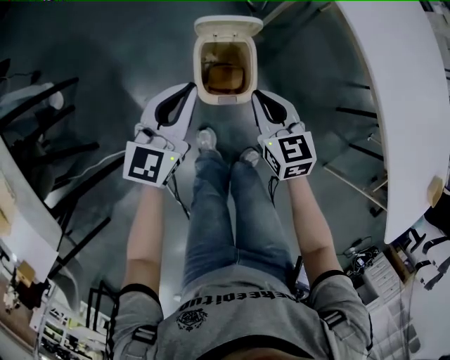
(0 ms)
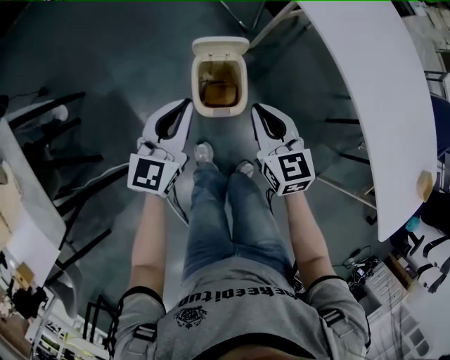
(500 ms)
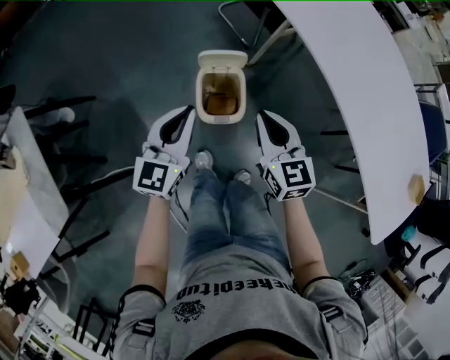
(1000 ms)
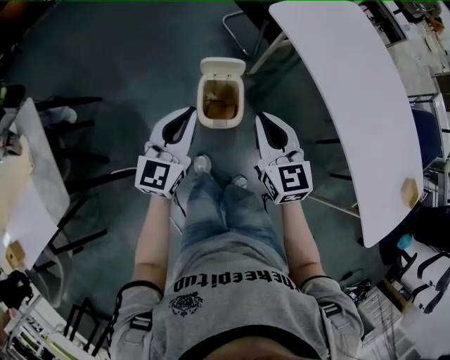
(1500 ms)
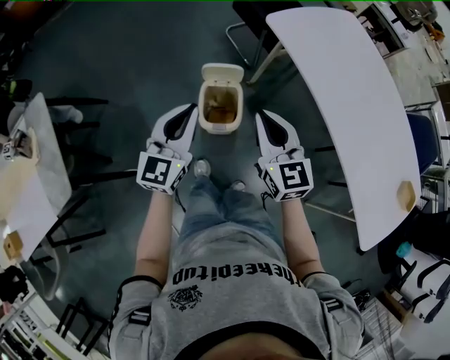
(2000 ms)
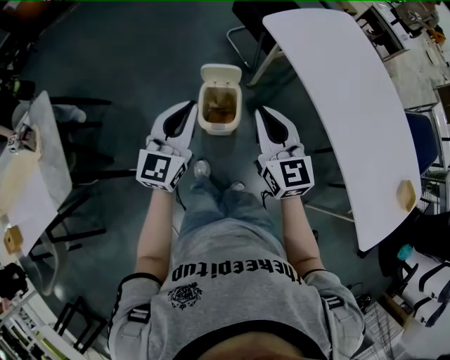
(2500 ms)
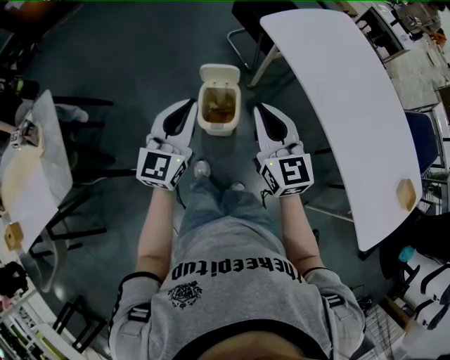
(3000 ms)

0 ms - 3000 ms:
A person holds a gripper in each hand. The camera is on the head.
0 ms - 1500 ms: The left gripper moves upward and backward, some 15 cm; the right gripper goes about 20 cm upward.
1500 ms - 3000 ms: The two grippers go approximately 5 cm upward.

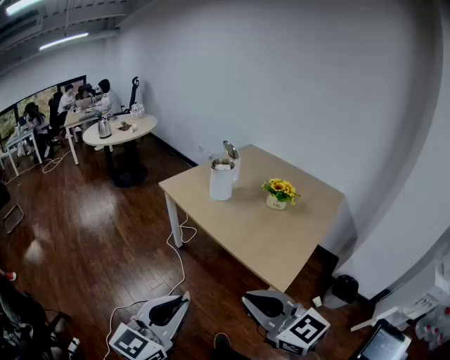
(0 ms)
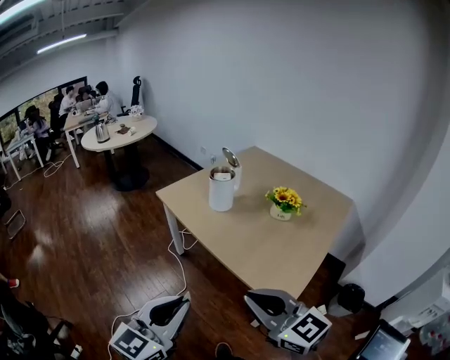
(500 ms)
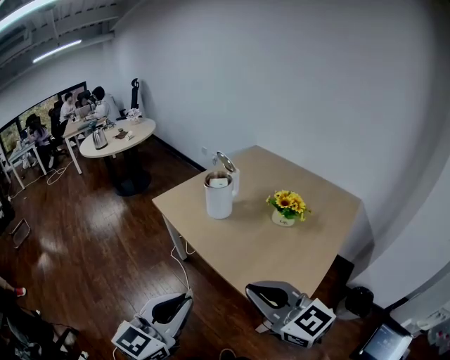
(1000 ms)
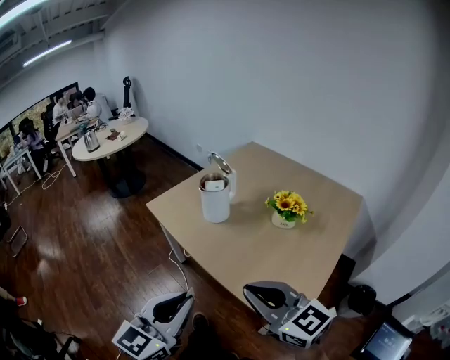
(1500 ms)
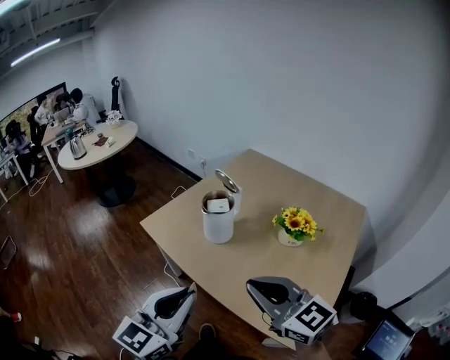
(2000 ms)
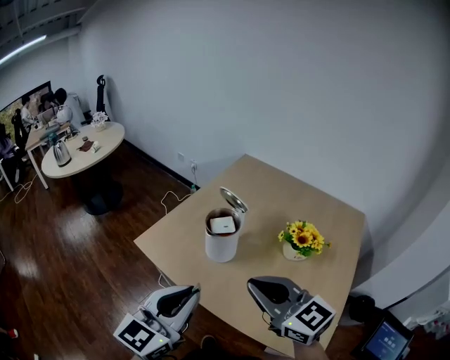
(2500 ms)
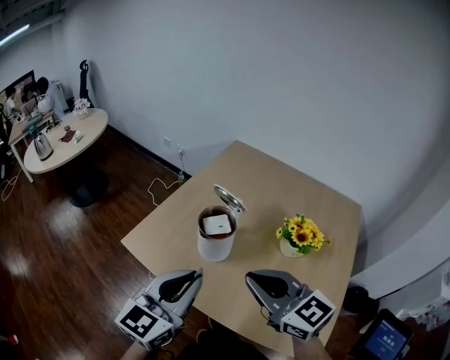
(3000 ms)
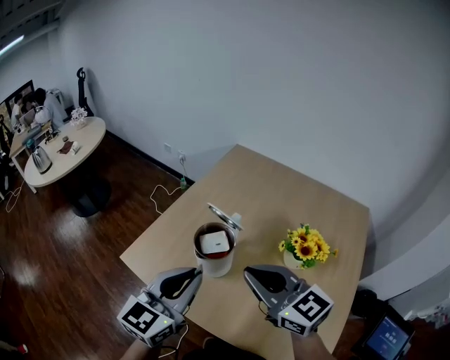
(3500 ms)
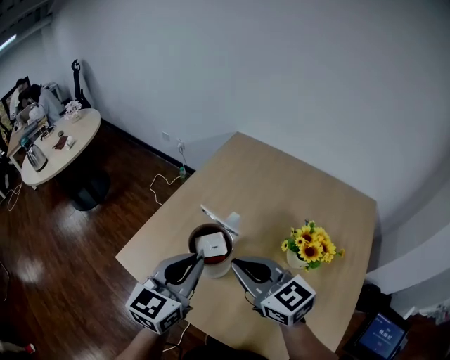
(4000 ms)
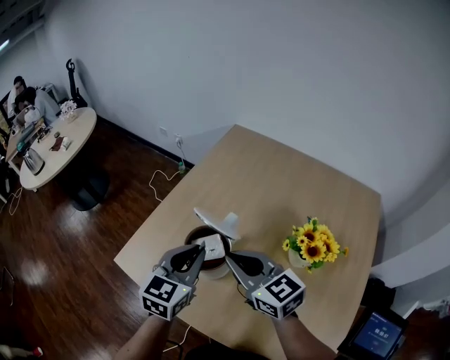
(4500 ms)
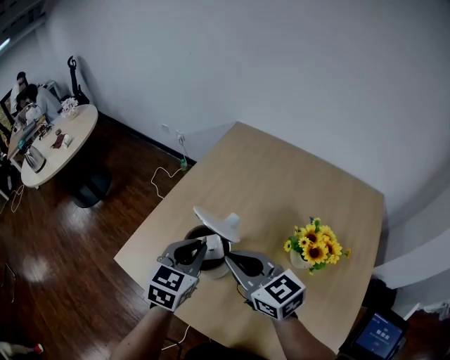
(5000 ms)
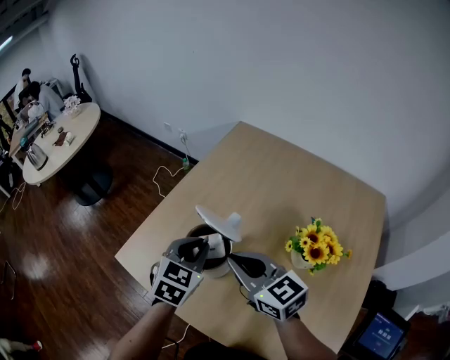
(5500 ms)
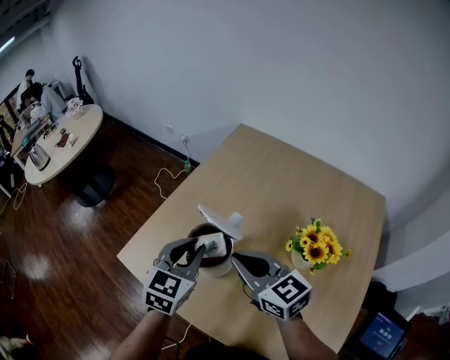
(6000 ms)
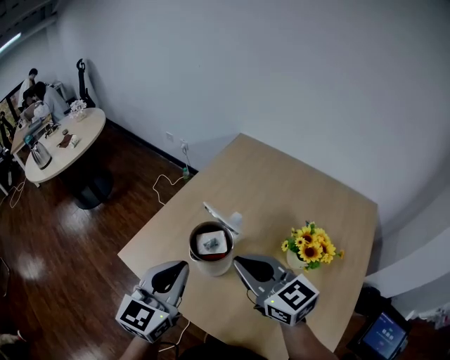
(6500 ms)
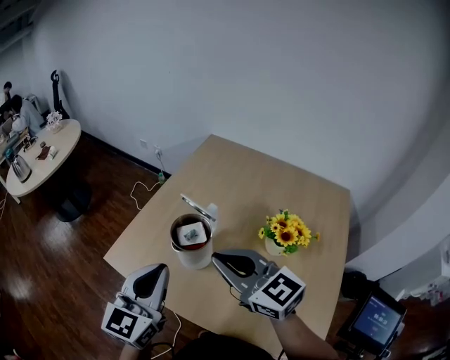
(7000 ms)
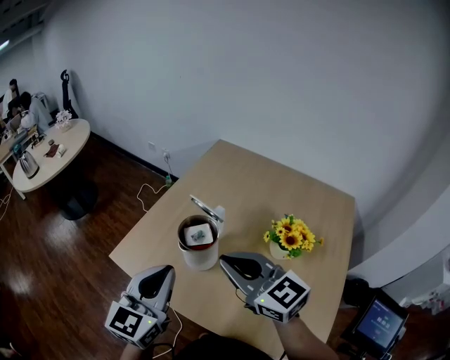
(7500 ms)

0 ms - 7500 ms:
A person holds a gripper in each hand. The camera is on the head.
0 ms - 2000 ms: Both grippers move forward, approximately 35 cm.
2000 ms - 4000 ms: The two grippers go approximately 35 cm forward.
4000 ms - 5500 ms: The left gripper is displaced downward and forward by some 10 cm, and turns by approximately 30 degrees.
5500 ms - 7500 ms: The right gripper moves upward and backward, some 10 cm; the left gripper is displaced backward, upward and to the left by about 20 cm, and changes its angle by roughly 30 degrees.

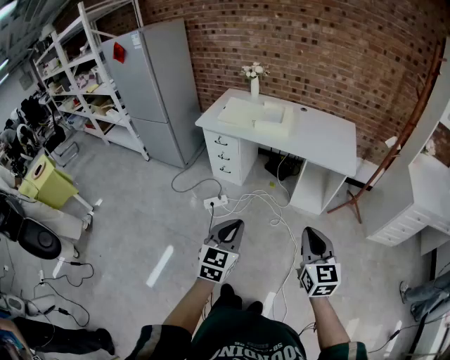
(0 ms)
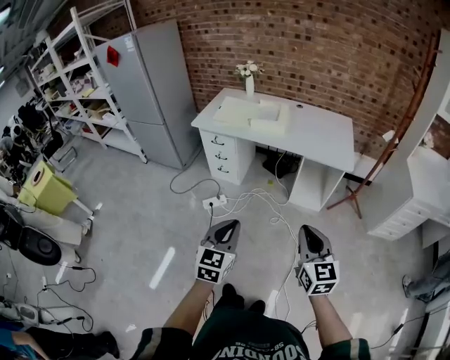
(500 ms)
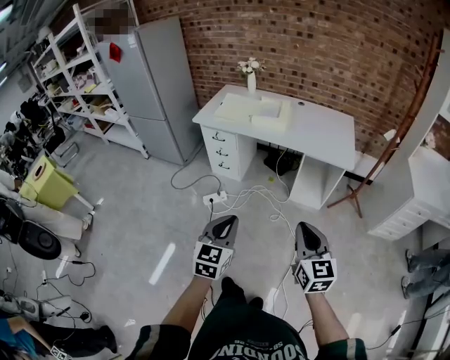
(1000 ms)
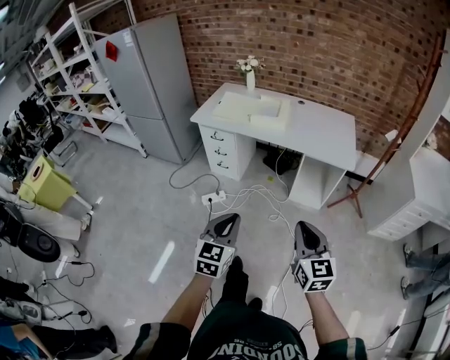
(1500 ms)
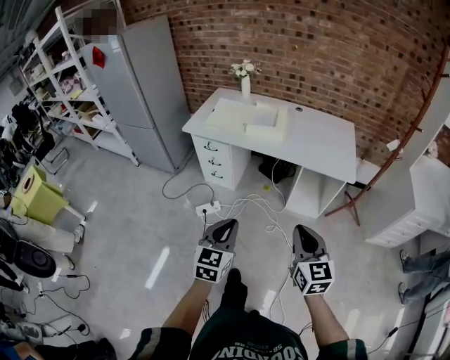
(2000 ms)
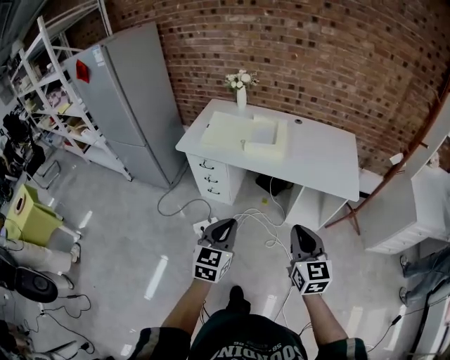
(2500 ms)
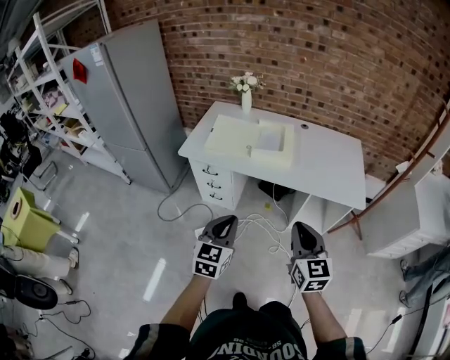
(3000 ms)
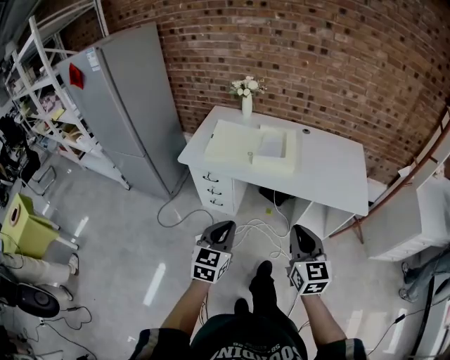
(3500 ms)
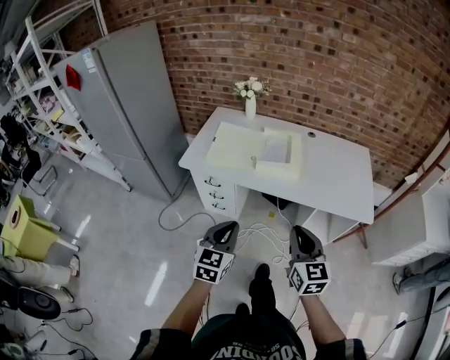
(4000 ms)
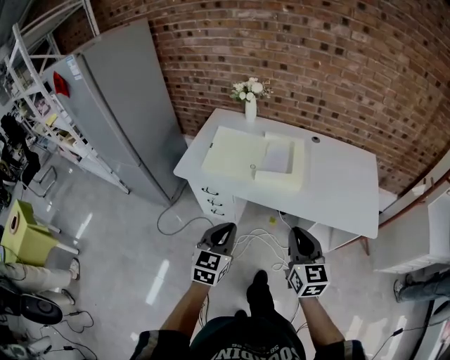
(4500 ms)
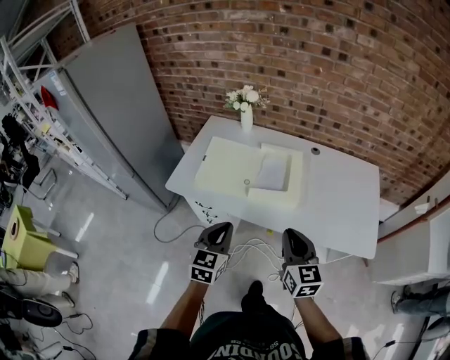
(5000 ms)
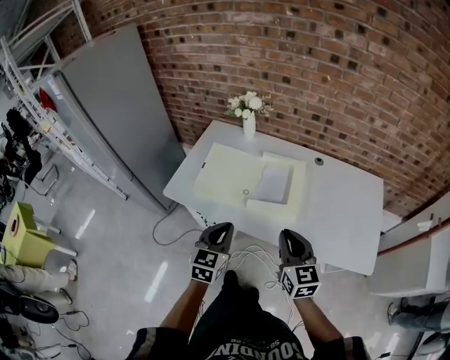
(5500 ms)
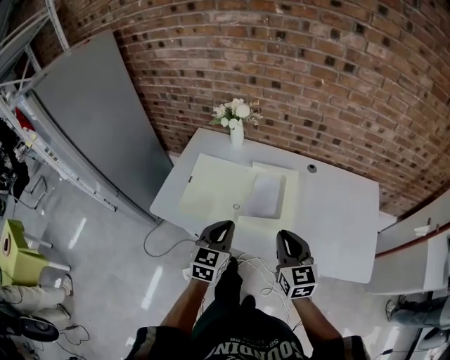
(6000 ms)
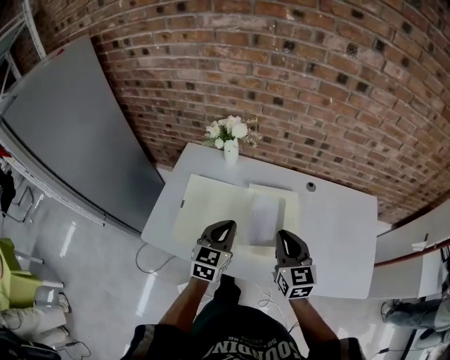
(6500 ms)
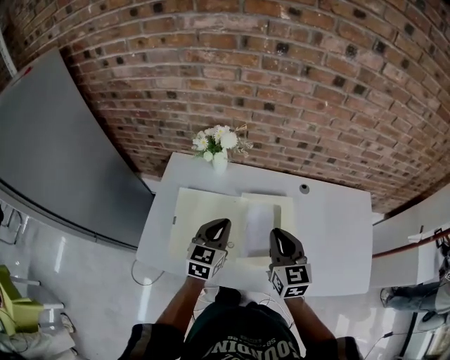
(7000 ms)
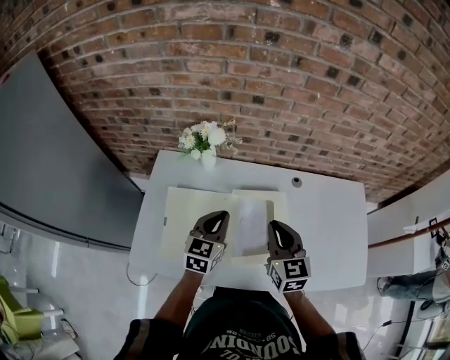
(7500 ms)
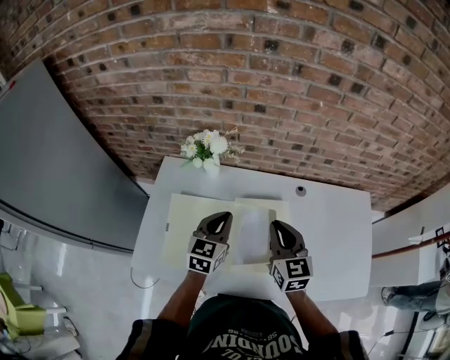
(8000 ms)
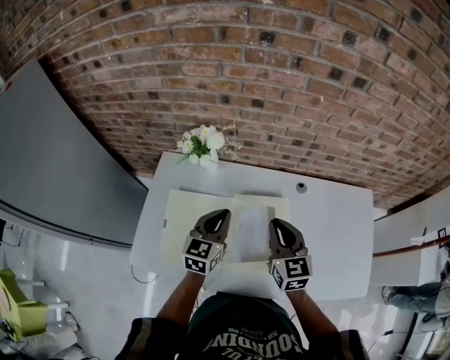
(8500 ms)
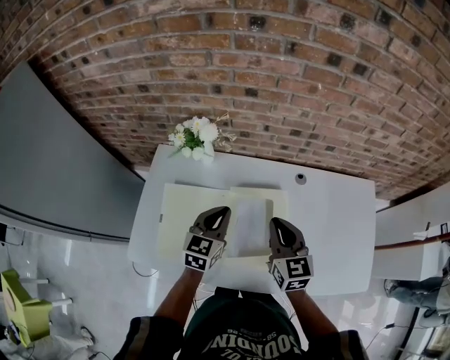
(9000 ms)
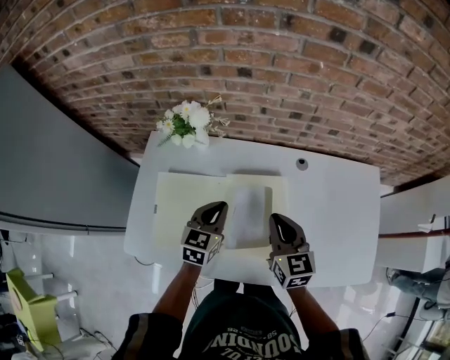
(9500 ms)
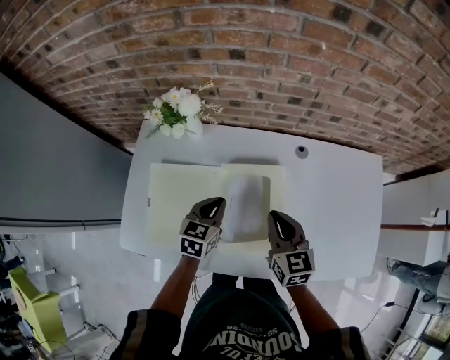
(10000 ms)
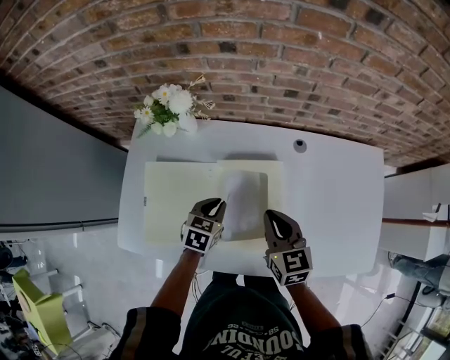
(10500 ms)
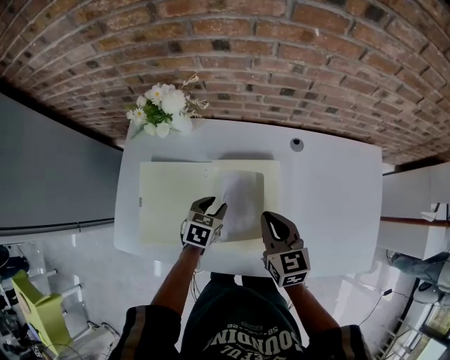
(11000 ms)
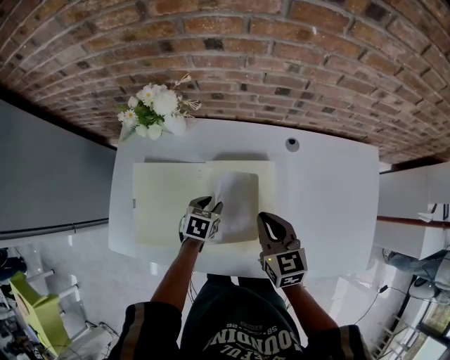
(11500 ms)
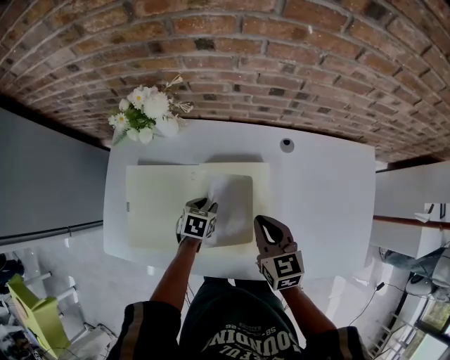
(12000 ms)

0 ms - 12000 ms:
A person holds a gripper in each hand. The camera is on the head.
0 ms - 2000 ms: The two grippers go about 10 cm forward.
2000 ms - 4000 ms: The two grippers go some 30 cm forward and to the left.
4000 ms - 6000 ms: Both grippers travel together forward, roughly 35 cm.
6000 ms - 8000 ms: Both grippers travel together forward, about 25 cm.
8000 ms - 10000 ms: The right gripper shifts about 10 cm downward and to the right. The left gripper is displaced downward by some 10 cm.
10000 ms - 12000 ms: The left gripper moves downward, about 15 cm, turns by some 30 degrees, and opens its fingers.

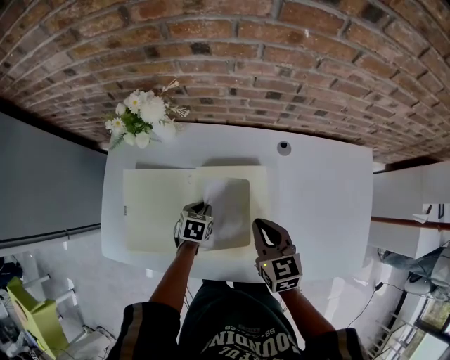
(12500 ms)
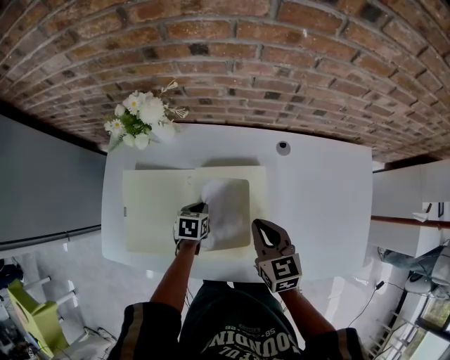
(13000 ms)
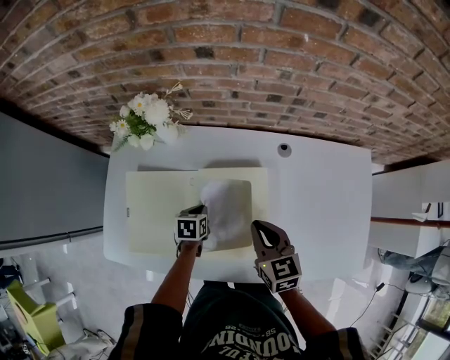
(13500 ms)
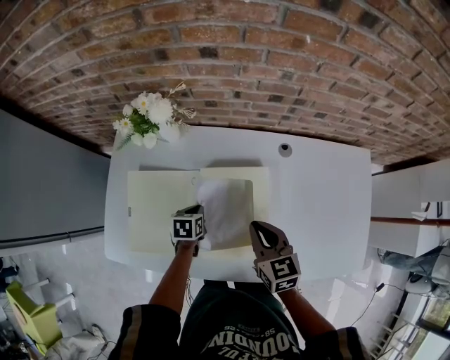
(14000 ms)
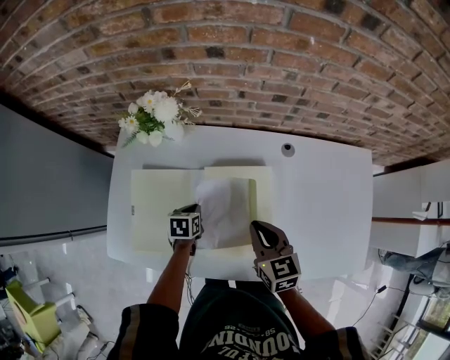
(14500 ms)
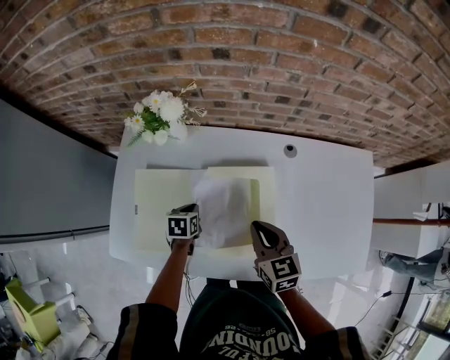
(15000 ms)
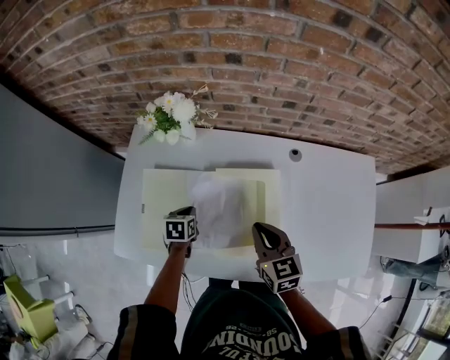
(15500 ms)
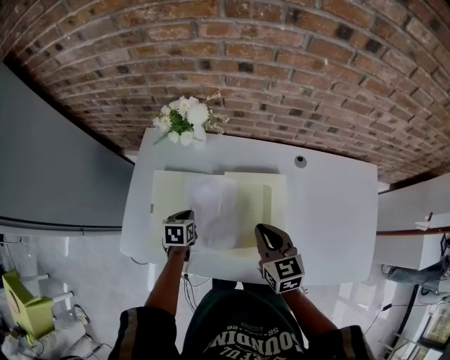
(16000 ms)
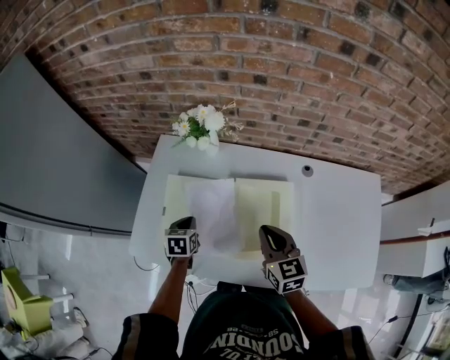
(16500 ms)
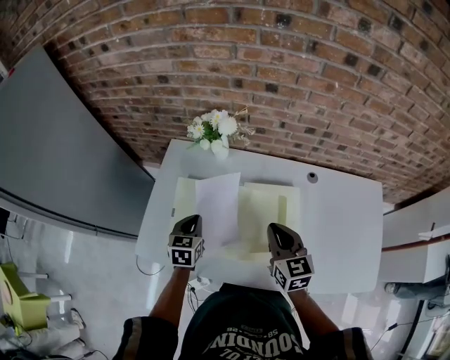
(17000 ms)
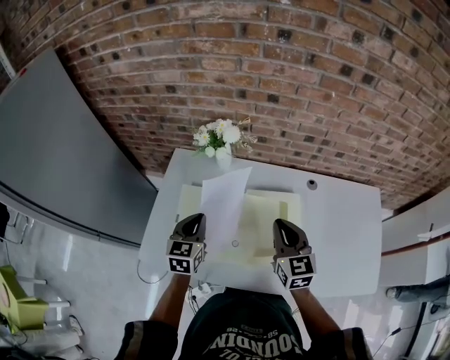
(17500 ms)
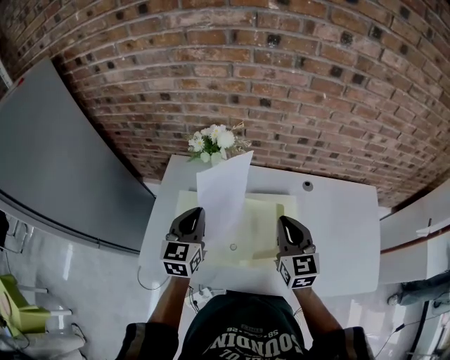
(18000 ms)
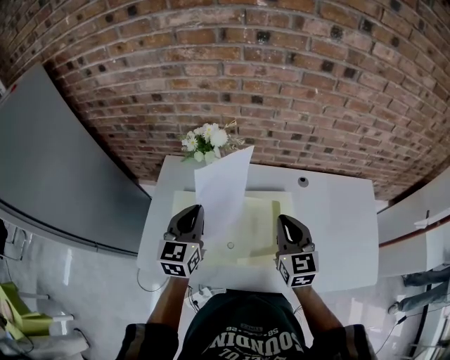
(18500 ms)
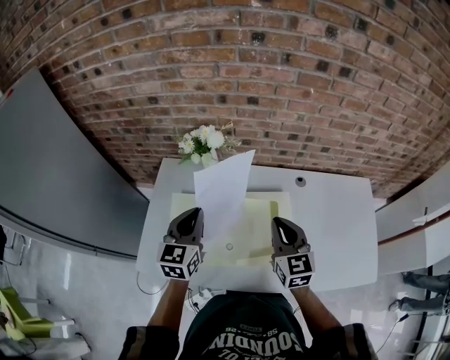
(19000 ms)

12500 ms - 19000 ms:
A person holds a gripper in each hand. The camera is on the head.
12500 ms - 14500 ms: The left gripper goes approximately 5 cm to the left.
14500 ms - 17000 ms: The left gripper goes roughly 20 cm upward and to the left, and swivels roughly 30 degrees. Meanwhile the right gripper travels to the left and upward by approximately 10 cm.
17000 ms - 19000 ms: The left gripper is displaced upward by approximately 15 cm, and swivels some 20 degrees; the right gripper travels upward by approximately 5 cm.
